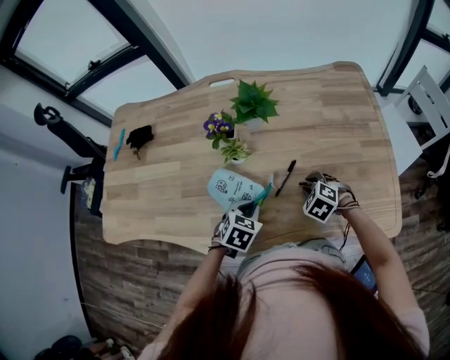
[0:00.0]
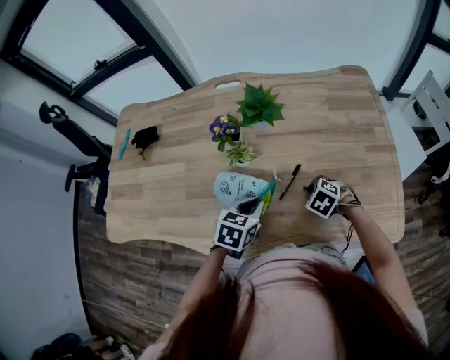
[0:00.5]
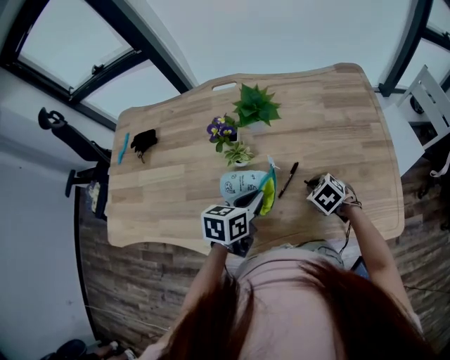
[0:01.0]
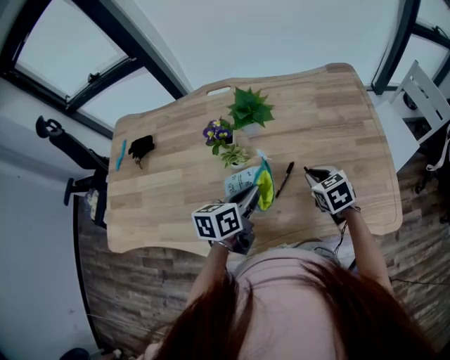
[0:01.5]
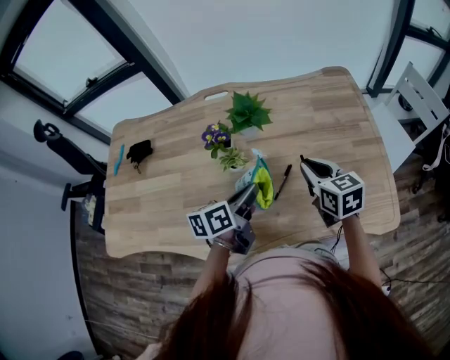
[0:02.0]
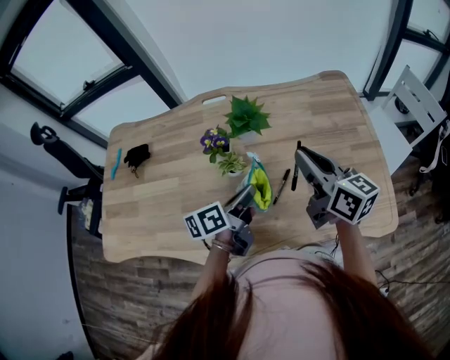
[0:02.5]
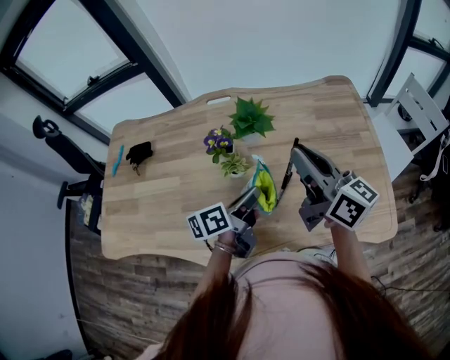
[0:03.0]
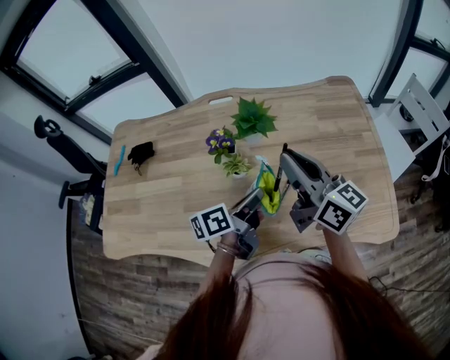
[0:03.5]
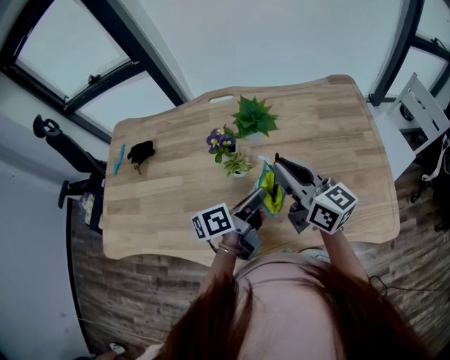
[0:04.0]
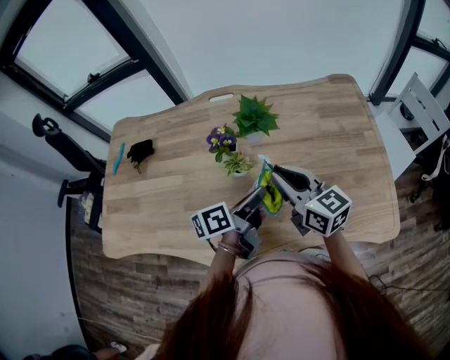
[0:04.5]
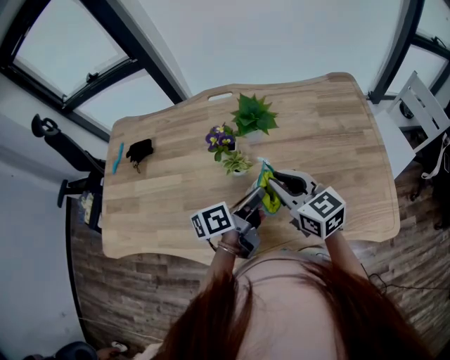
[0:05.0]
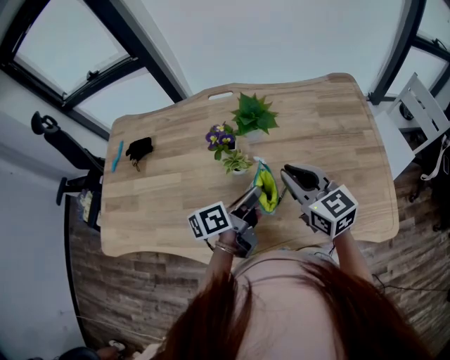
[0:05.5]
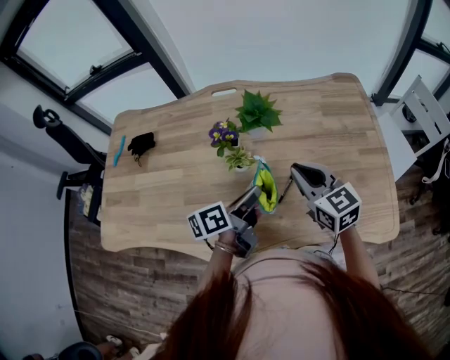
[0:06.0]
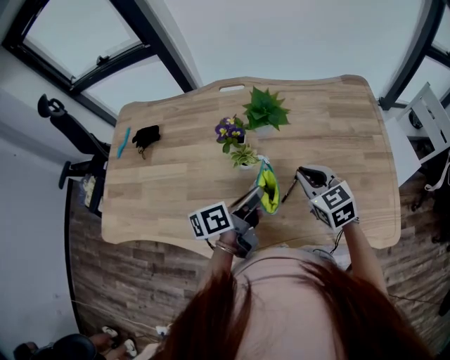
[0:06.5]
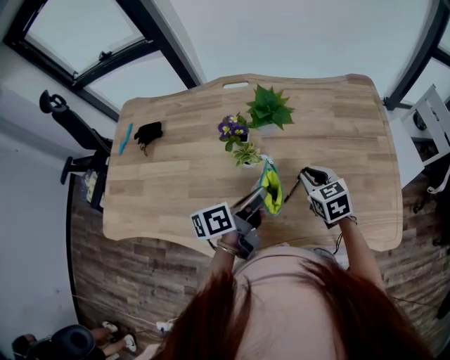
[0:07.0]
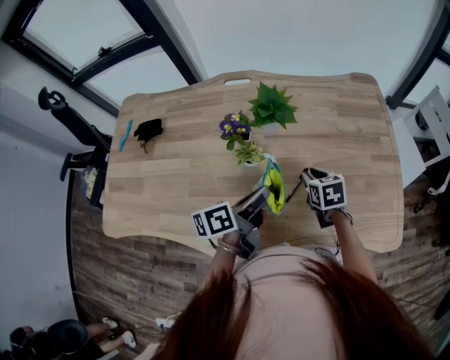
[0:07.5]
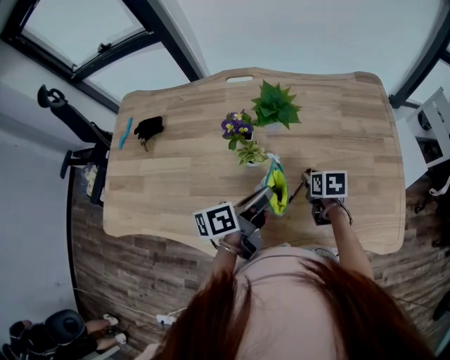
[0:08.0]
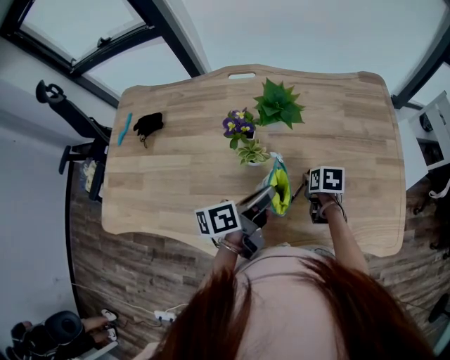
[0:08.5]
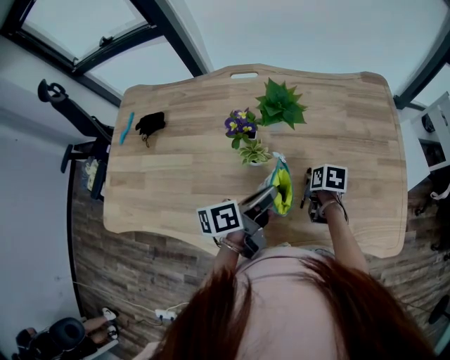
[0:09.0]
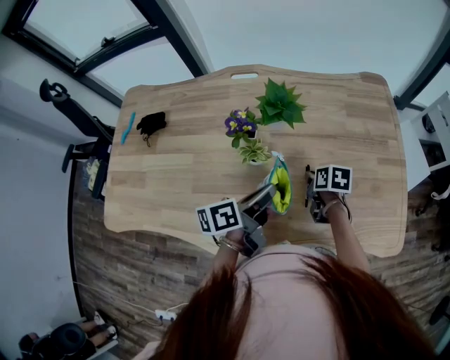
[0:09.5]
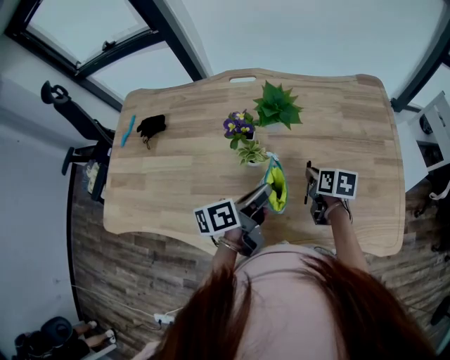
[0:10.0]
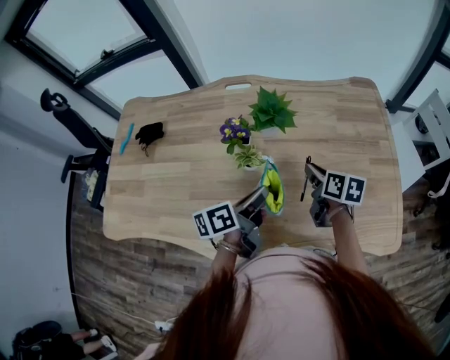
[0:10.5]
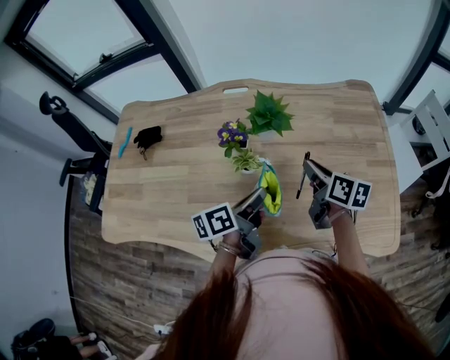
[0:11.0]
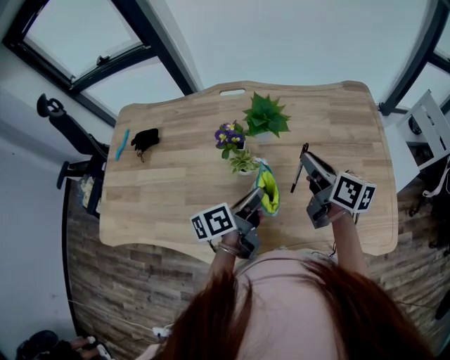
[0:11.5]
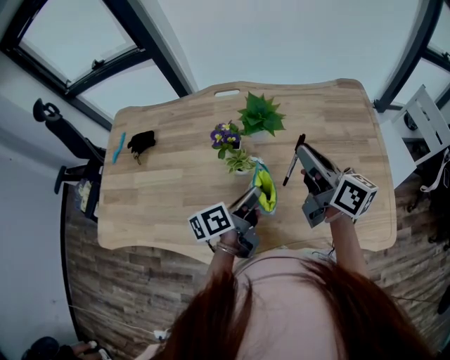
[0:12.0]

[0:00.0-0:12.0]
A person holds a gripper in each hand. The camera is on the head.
0:00.0 to 0:02.0: The right gripper shifts about 20 cm upward, and points its fingers some 40 degrees further upward; the left gripper heads upward and forward, covering about 15 cm, and angles its fingers upward, by about 40 degrees.
0:02.0 to 0:04.0: The right gripper moves upward and to the left, roughly 15 cm, and tilts its fingers about 30 degrees upward.
0:04.0 to 0:06.0: The right gripper is displaced downward by about 5 cm, and changes its angle by some 30 degrees.
0:06.0 to 0:08.0: The right gripper goes some 20 cm downward, points its fingers roughly 40 degrees further downward, and opens.
0:08.0 to 0:10.0: The grippers stay close to where they were, moving slightly.
0:10.0 to 0:12.0: The right gripper travels upward by roughly 20 cm, and tips its fingers upward by about 50 degrees.

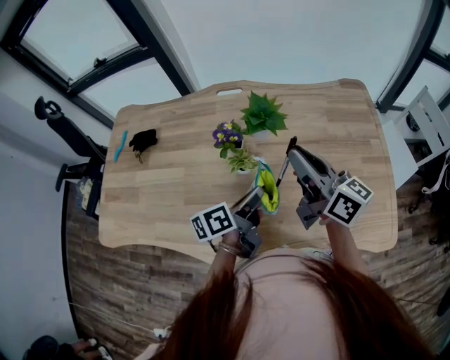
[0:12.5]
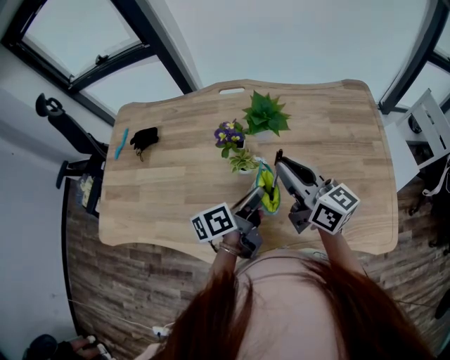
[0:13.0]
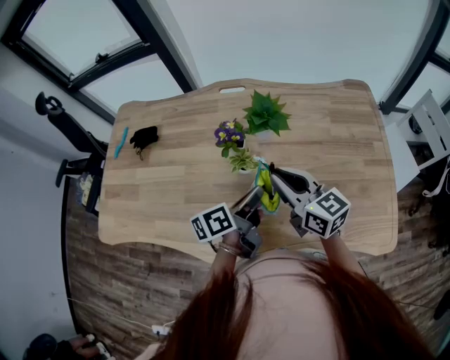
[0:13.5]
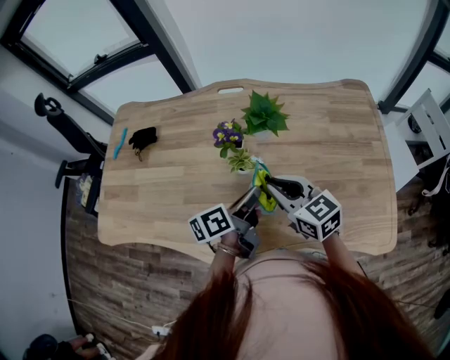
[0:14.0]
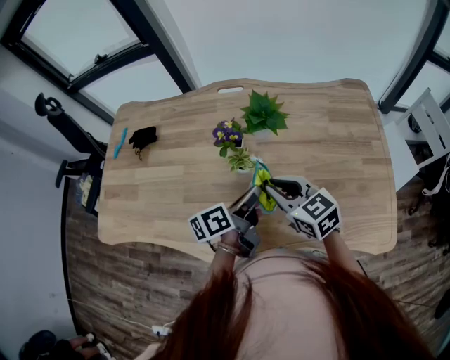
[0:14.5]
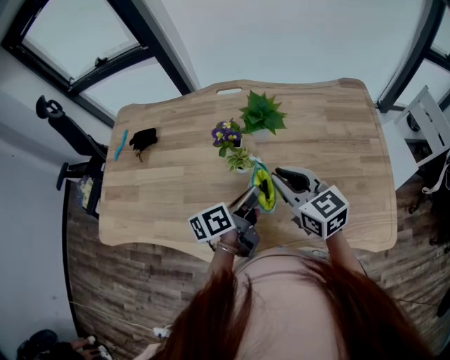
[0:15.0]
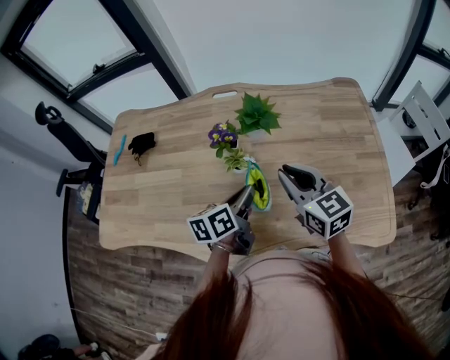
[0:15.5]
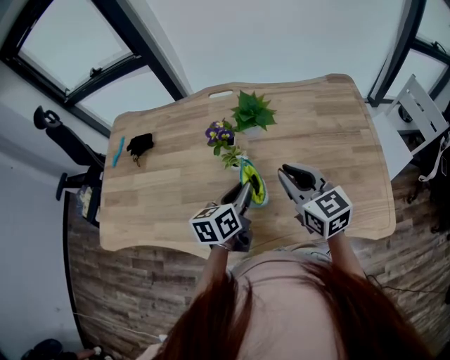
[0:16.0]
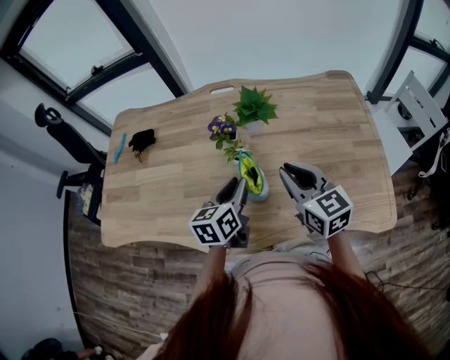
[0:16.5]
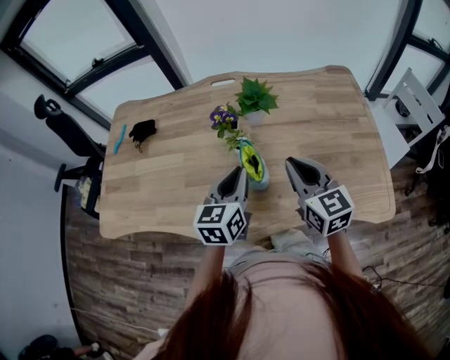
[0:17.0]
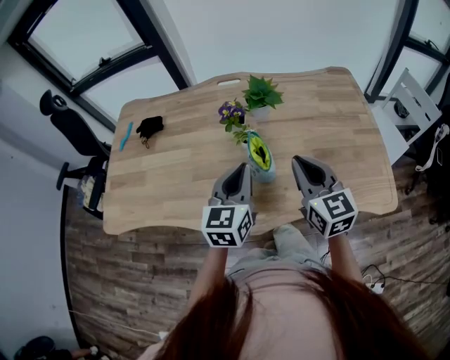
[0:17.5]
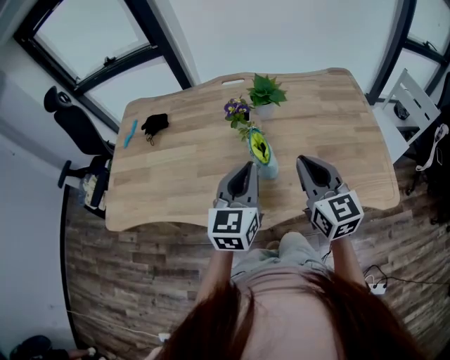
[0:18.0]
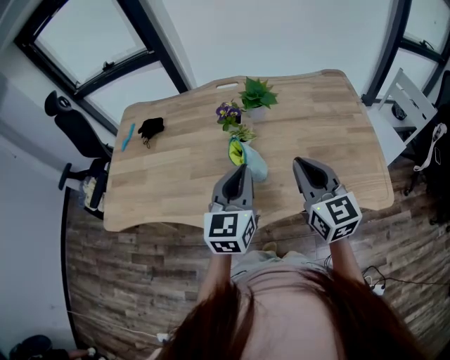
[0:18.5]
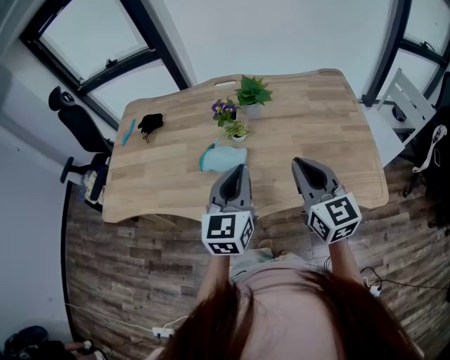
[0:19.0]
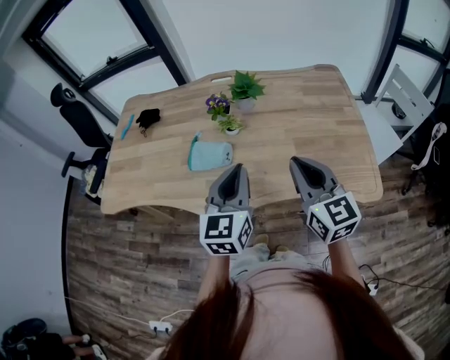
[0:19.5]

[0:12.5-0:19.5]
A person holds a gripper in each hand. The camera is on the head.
0:12.5 to 0:14.5: The right gripper moves downward and to the left, approximately 15 cm, and rotates some 40 degrees.
0:14.5 to 0:16.0: The right gripper shifts approximately 10 cm to the right and upward, while the left gripper swivels approximately 30 degrees.
0:16.0 to 0:17.5: The right gripper goes some 10 cm backward. The left gripper goes about 10 cm upward and backward, and turns by some 30 degrees.
0:17.5 to 0:19.5: The right gripper moves backward and to the right, some 10 cm. Meanwhile the left gripper shifts roughly 15 cm backward, to the right and upward.

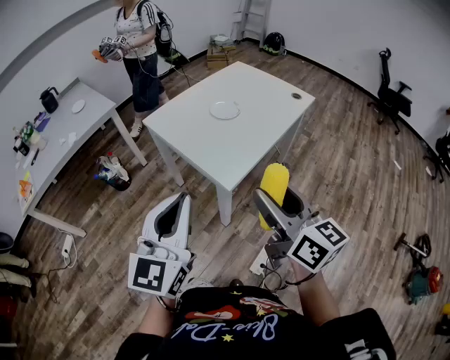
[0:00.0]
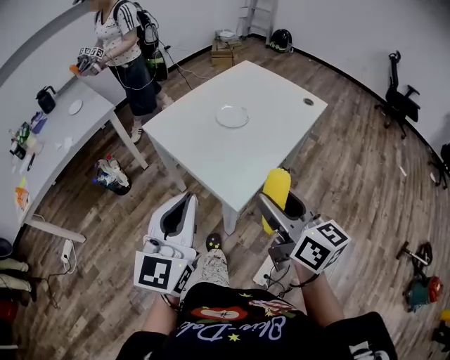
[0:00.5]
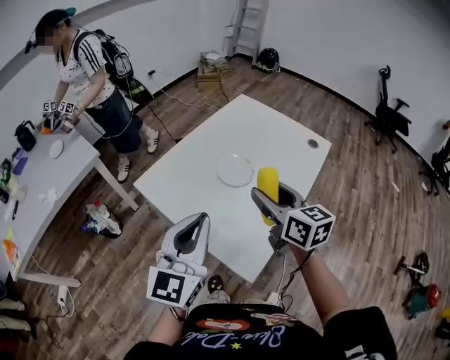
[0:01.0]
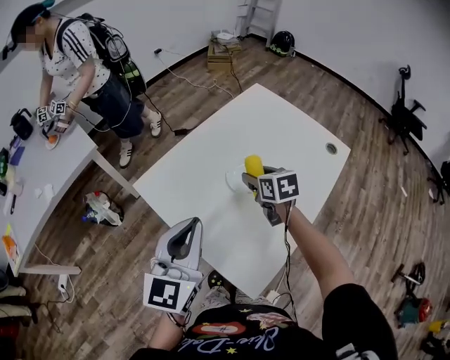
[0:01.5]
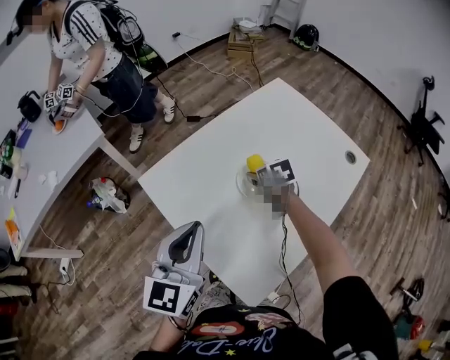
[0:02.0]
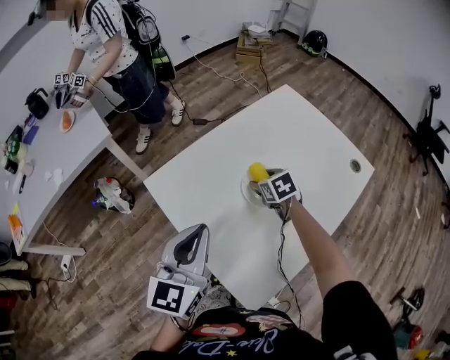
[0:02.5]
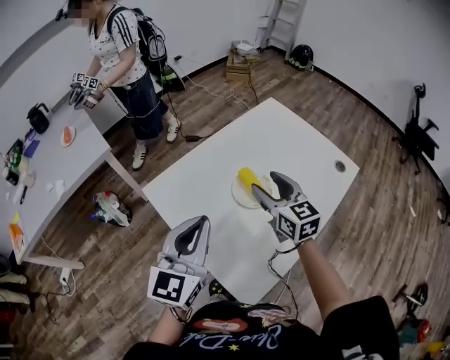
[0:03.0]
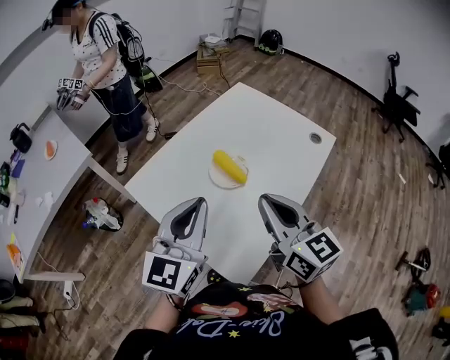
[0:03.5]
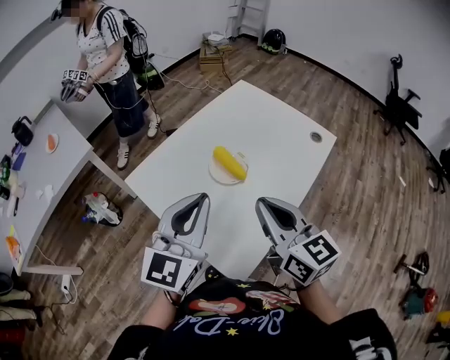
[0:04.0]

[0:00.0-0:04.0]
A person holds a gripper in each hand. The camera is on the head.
0:00.0 to 0:02.0: Both grippers are carried forward, roughly 50 cm. The right gripper goes roughly 30 cm downward, and tips its fingers downward by some 60 degrees.
0:02.0 to 0:04.0: The right gripper shifts some 35 cm backward and upward, tips its fingers upward by about 50 degrees, and closes its fingers, while the left gripper shifts about 10 cm to the right, upward and backward.

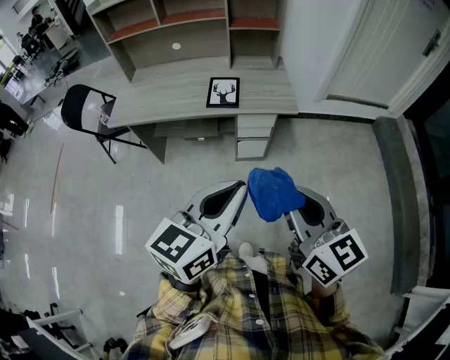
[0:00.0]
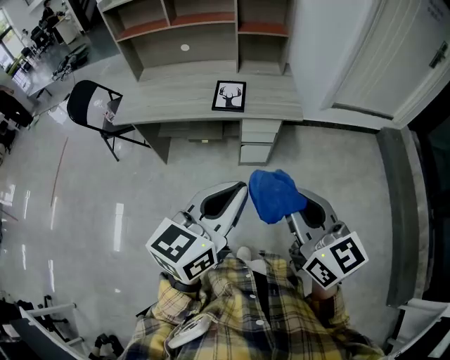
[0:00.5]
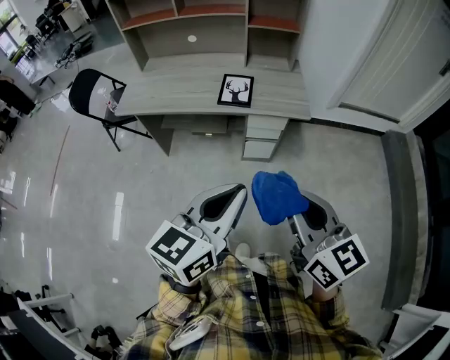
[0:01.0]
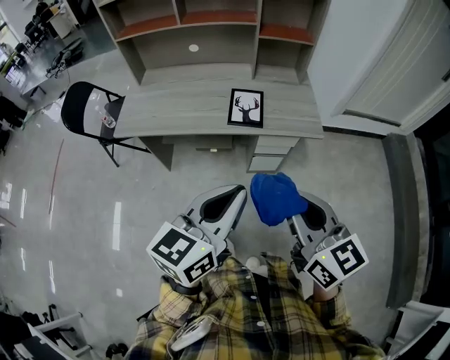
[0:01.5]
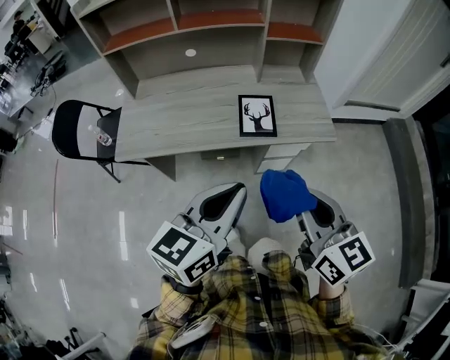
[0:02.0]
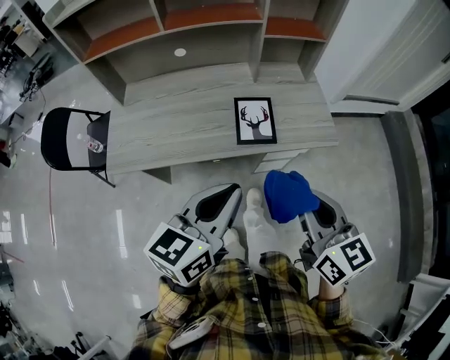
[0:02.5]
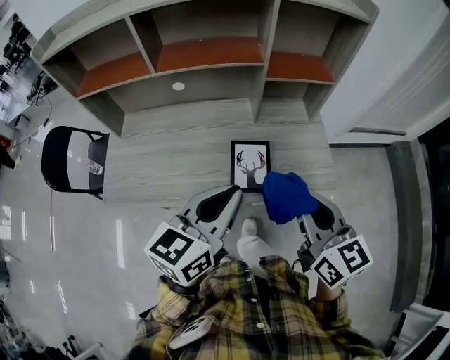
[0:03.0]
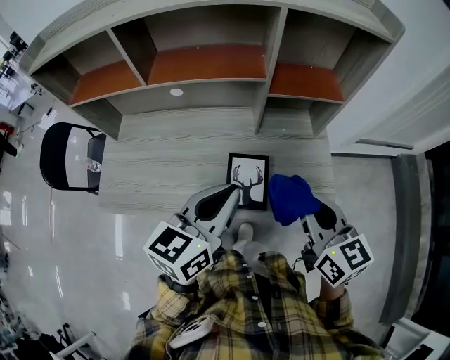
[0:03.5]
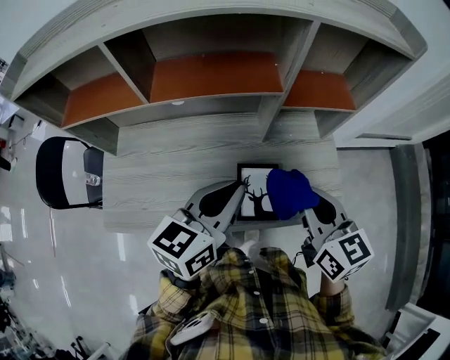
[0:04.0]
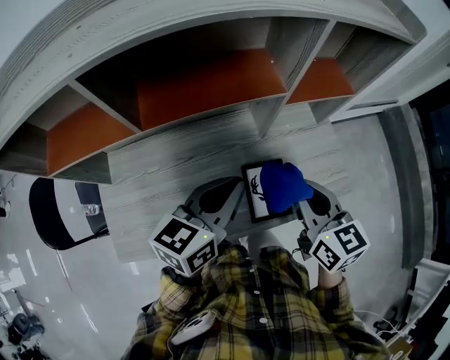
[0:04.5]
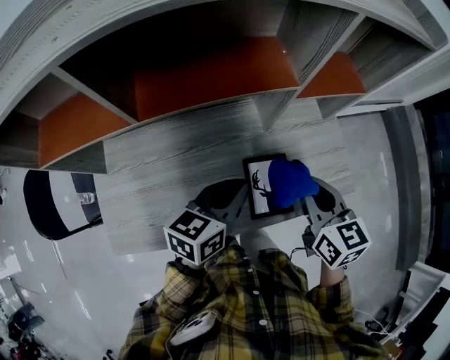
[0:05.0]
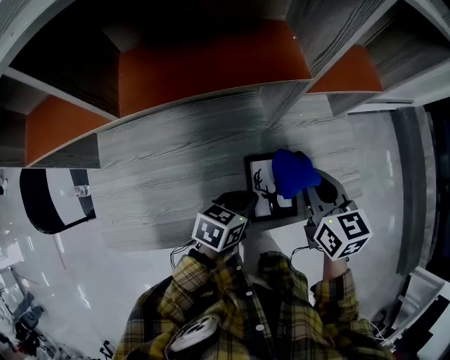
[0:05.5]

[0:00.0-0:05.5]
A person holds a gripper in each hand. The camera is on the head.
0:00.0 to 0:02.0: Both grippers move forward and to the left, about 25 cm.
0:02.0 to 0:03.5: Both grippers move forward, roughly 30 cm.
0:03.5 to 0:05.5: The left gripper shifts some 25 cm downward, and turns by about 40 degrees, while the right gripper goes approximately 20 cm downward, forward and to the left.
